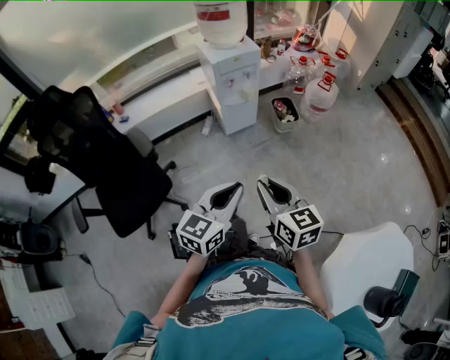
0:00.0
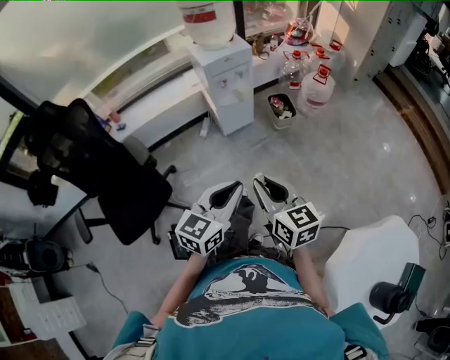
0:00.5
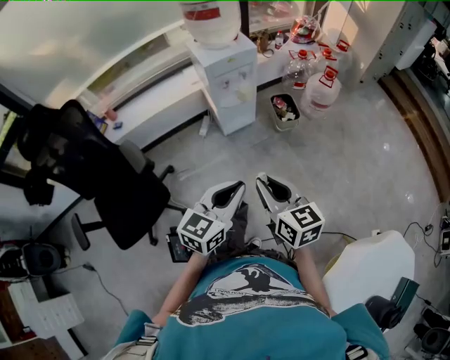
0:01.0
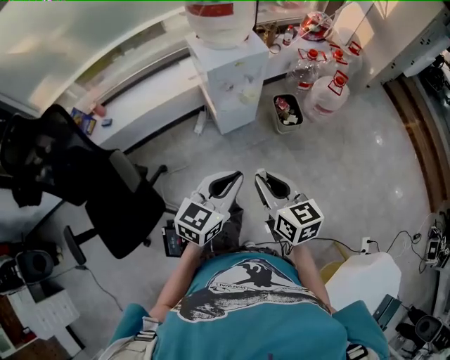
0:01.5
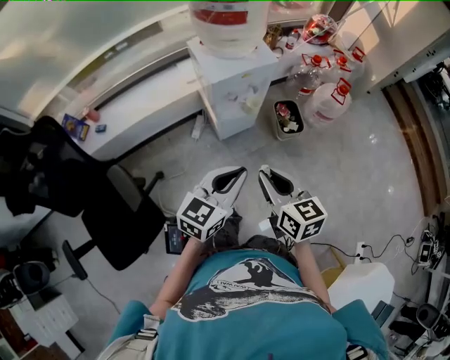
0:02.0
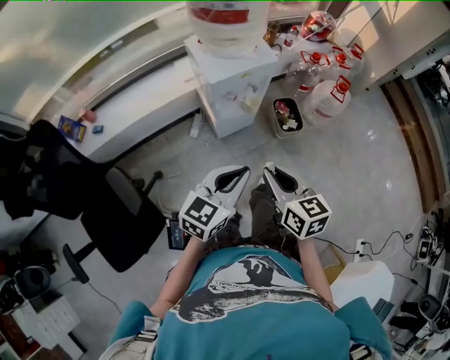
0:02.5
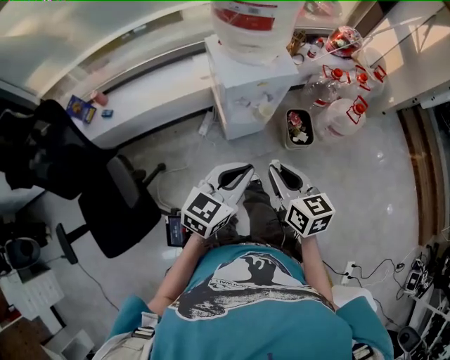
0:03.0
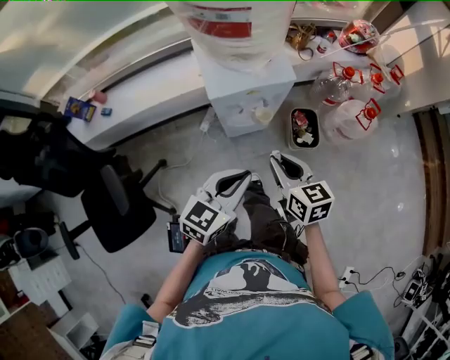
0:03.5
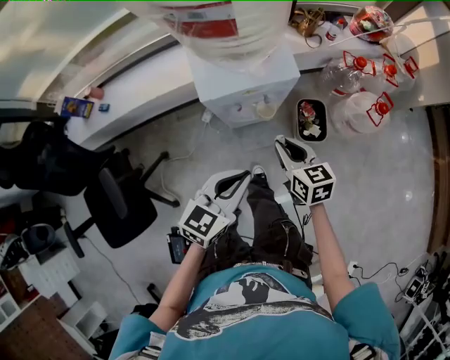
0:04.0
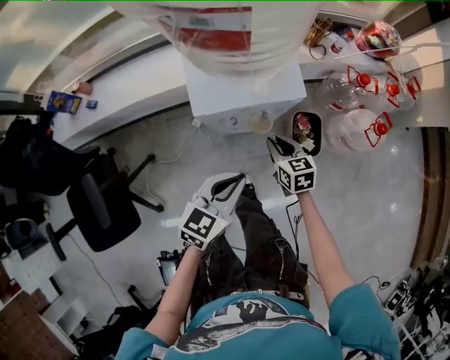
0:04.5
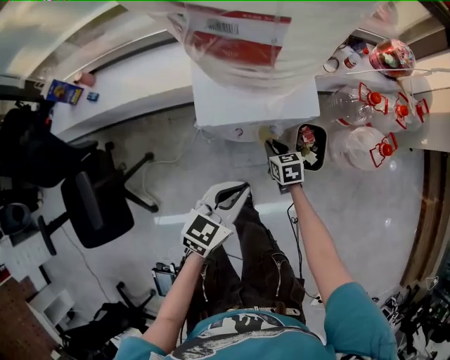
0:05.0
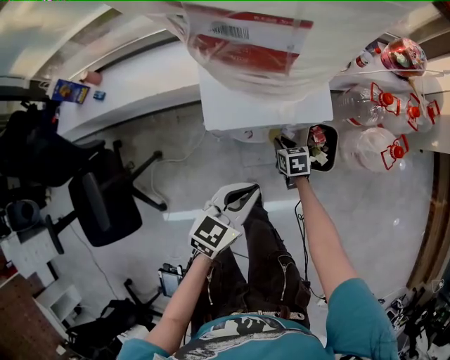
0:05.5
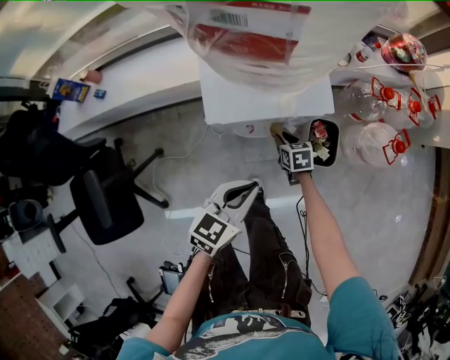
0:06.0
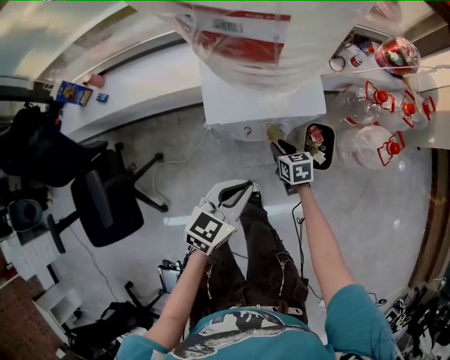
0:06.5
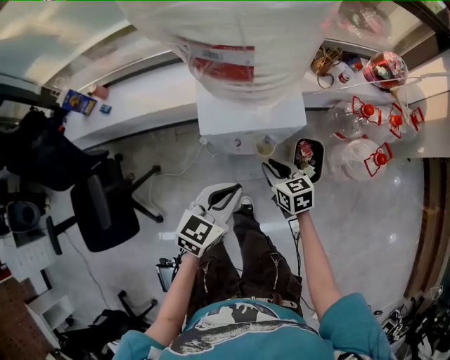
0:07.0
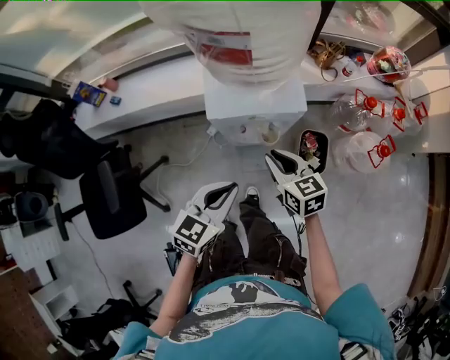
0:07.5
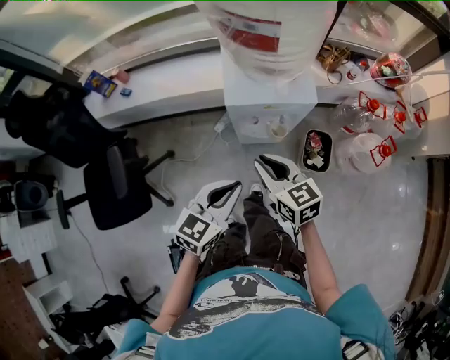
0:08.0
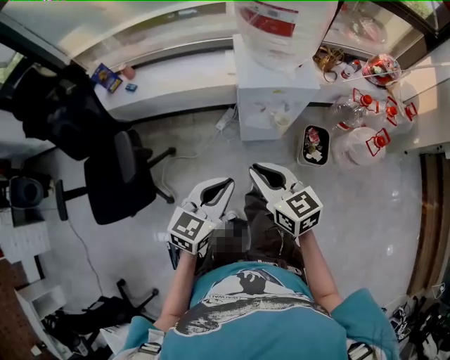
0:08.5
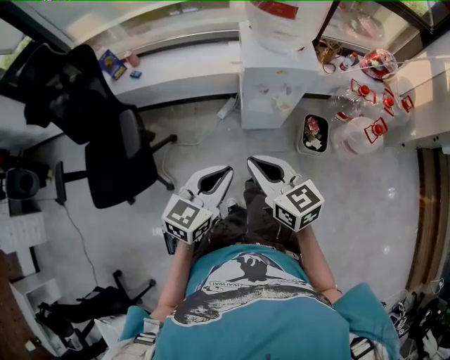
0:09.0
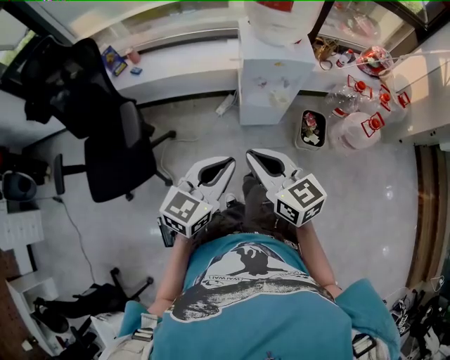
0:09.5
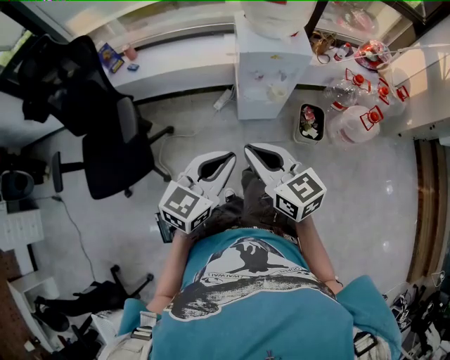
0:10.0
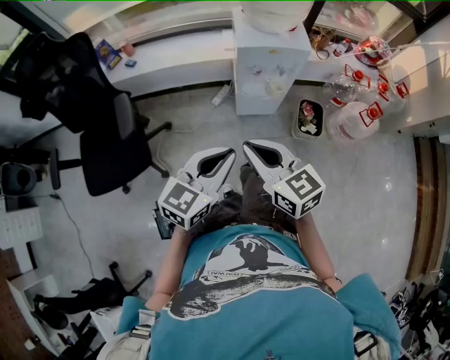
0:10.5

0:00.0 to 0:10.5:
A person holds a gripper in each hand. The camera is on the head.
0:00.0 to 0:02.0: Both grippers travel together forward, approximately 30 cm.
0:02.0 to 0:04.0: The left gripper is displaced forward by some 15 cm, while the right gripper is displaced forward and downward by approximately 30 cm.
0:04.0 to 0:06.5: The left gripper shifts approximately 10 cm downward and forward, while the right gripper shifts roughly 25 cm downward and forward.
0:06.5 to 0:08.5: The right gripper goes some 40 cm upward, backward and to the left, and changes its angle by approximately 30 degrees. The left gripper is displaced backward, upward and to the left by some 20 cm.
0:08.5 to 0:10.5: Both grippers move backward, approximately 10 cm.

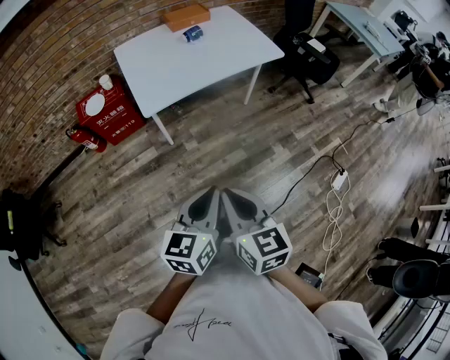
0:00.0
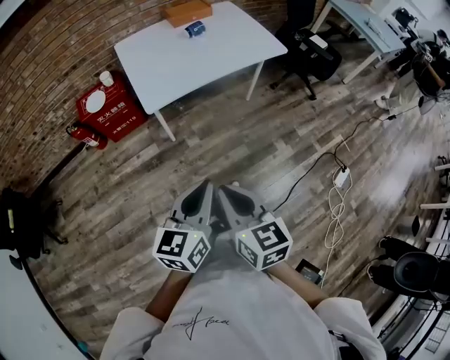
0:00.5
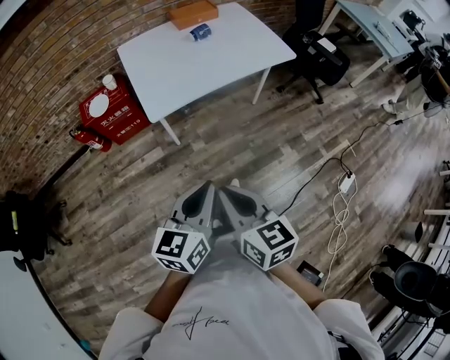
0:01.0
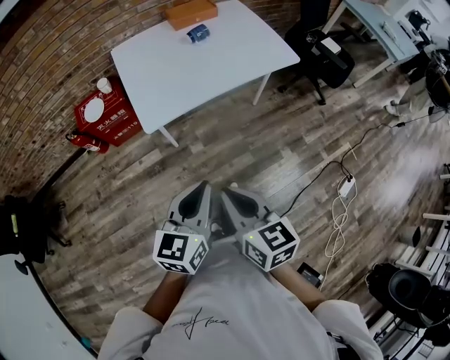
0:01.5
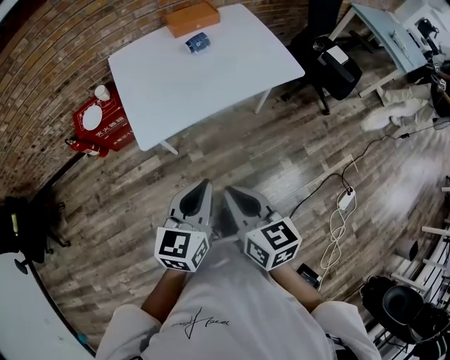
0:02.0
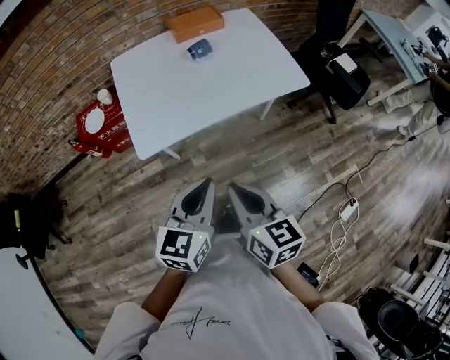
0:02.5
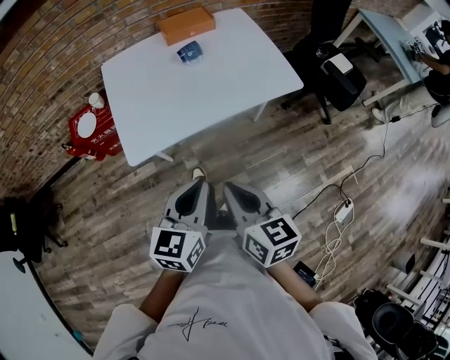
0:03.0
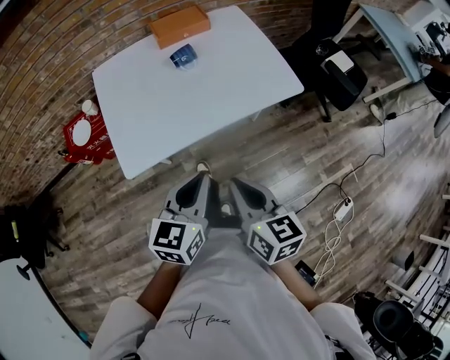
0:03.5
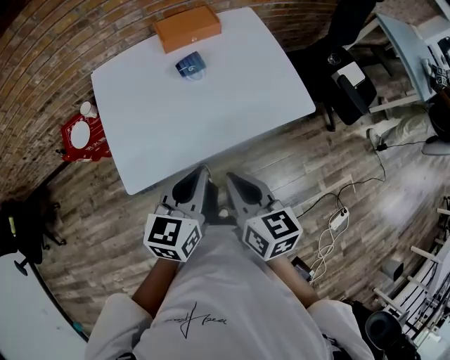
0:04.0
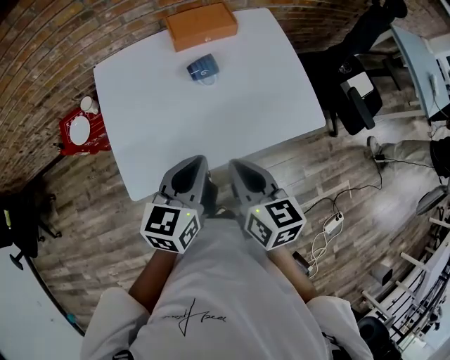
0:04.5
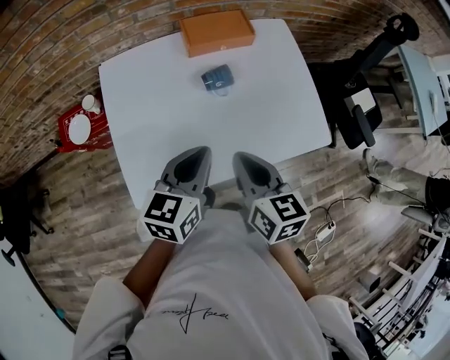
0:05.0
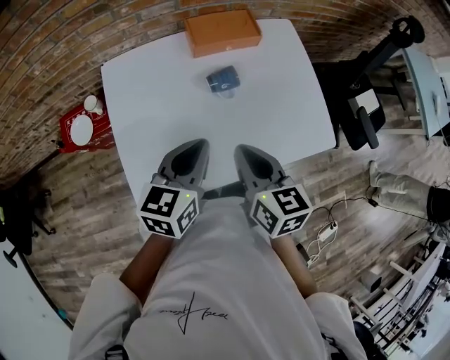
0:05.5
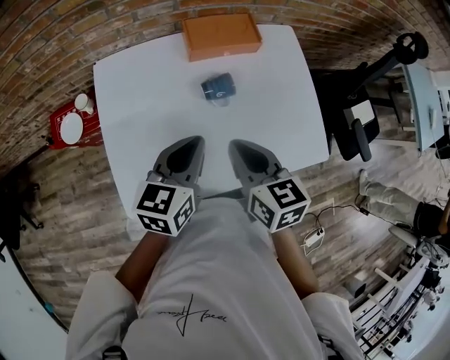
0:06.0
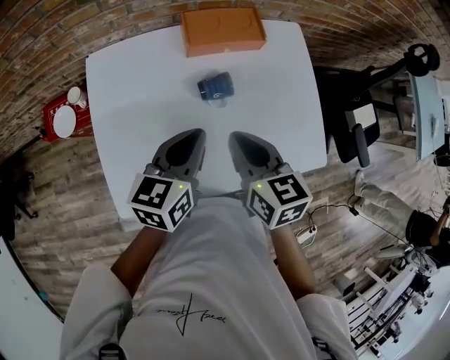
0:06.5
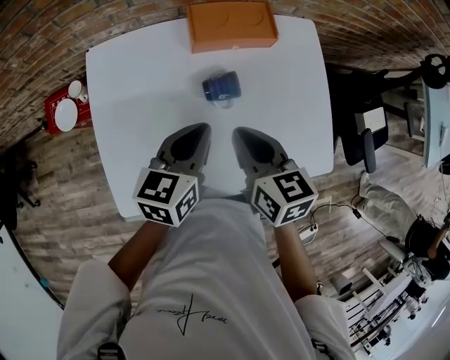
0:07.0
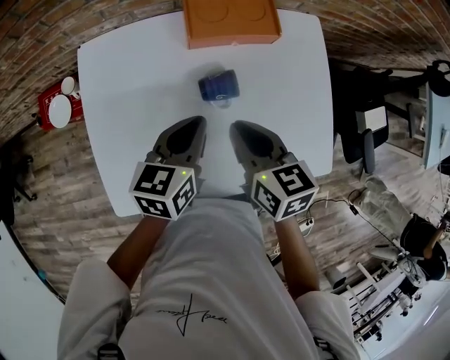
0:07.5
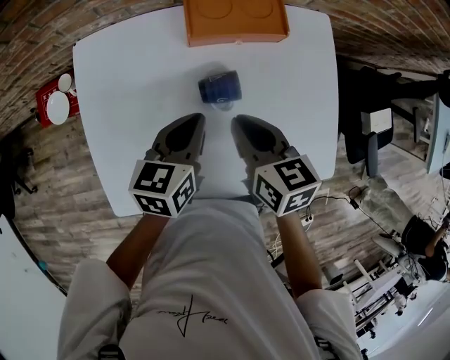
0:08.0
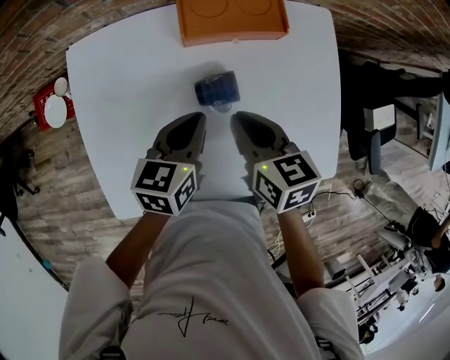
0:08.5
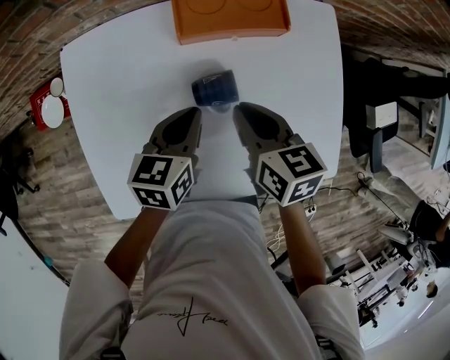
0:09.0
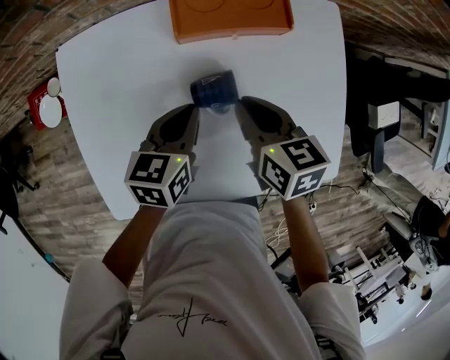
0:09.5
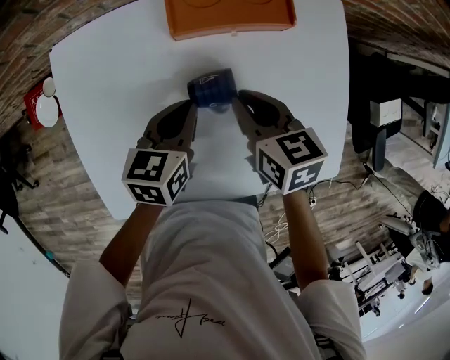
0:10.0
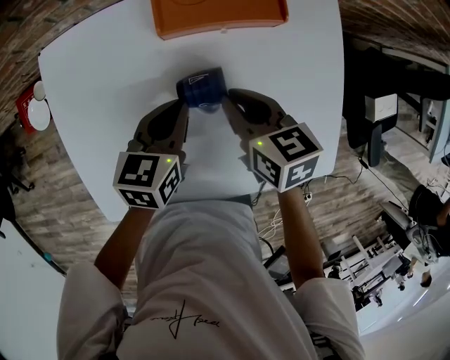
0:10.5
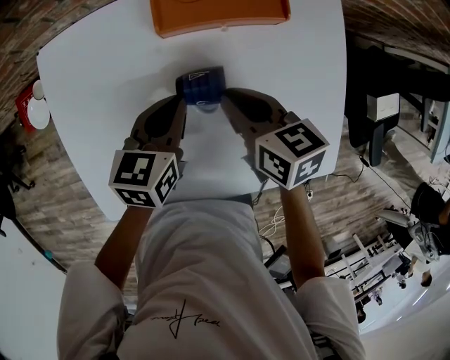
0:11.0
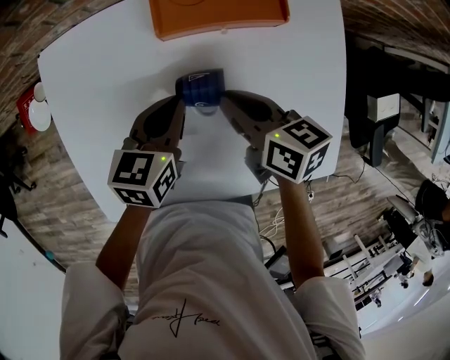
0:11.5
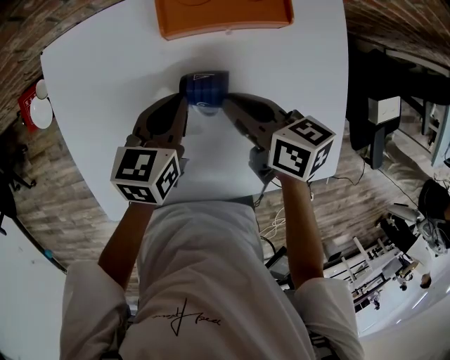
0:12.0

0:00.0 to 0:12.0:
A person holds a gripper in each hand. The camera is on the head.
0:00.0 to 0:02.0: The grippers both shift forward by about 20 cm.
0:02.0 to 0:04.0: Both grippers move forward, about 25 cm.
0:04.0 to 0:06.0: Both grippers move forward, roughly 20 cm.
0:06.0 to 0:08.0: The grippers both shift forward and downward by some 15 cm.
0:08.0 to 0:10.0: The left gripper moves downward, about 5 cm. Meanwhile the right gripper goes roughly 10 cm downward and forward.
0:10.0 to 0:12.0: The right gripper changes its angle by some 20 degrees.

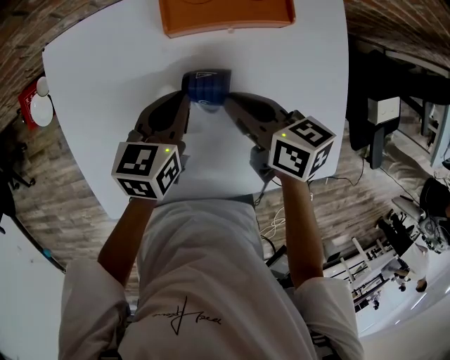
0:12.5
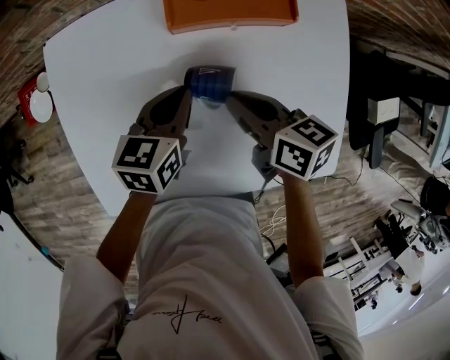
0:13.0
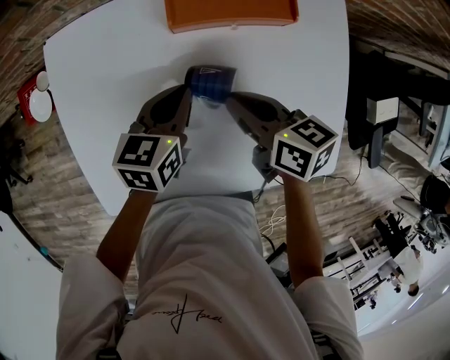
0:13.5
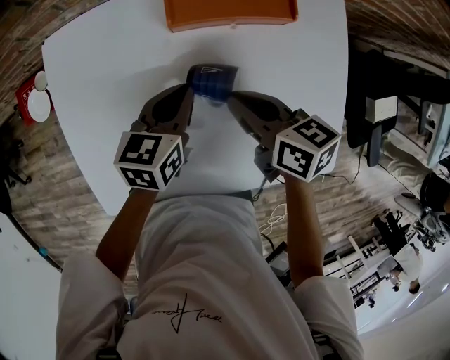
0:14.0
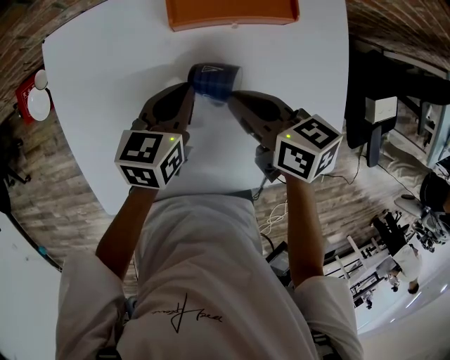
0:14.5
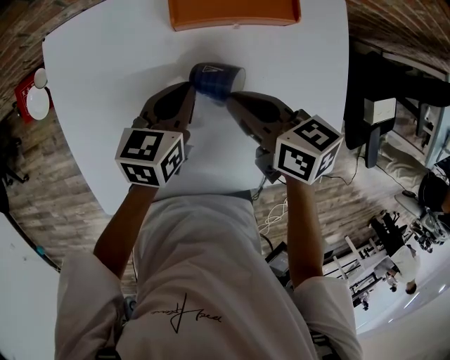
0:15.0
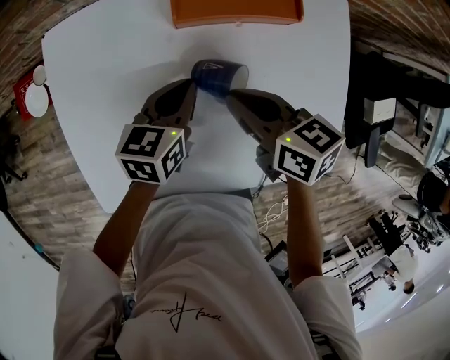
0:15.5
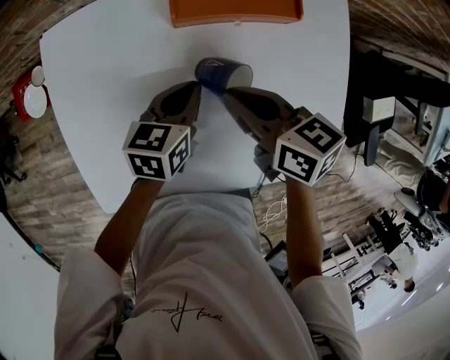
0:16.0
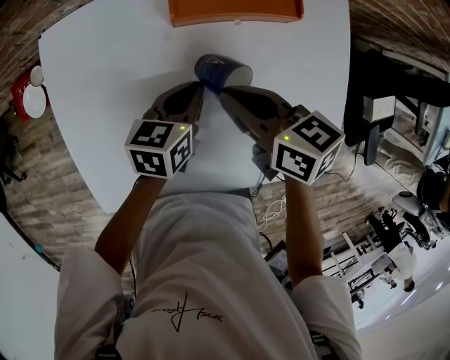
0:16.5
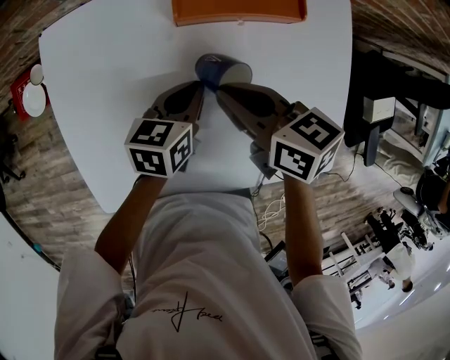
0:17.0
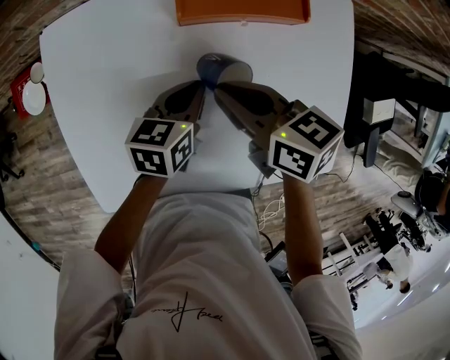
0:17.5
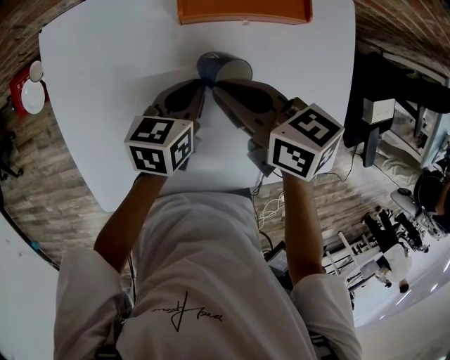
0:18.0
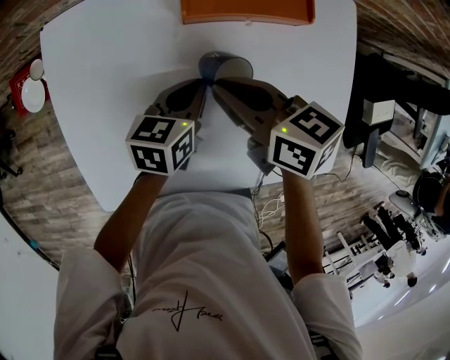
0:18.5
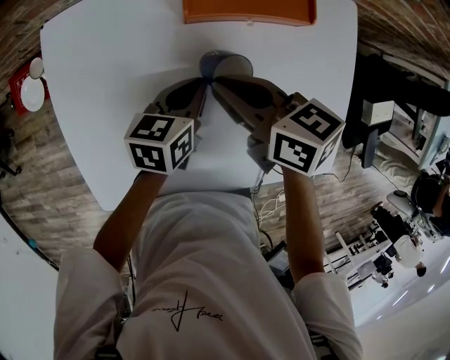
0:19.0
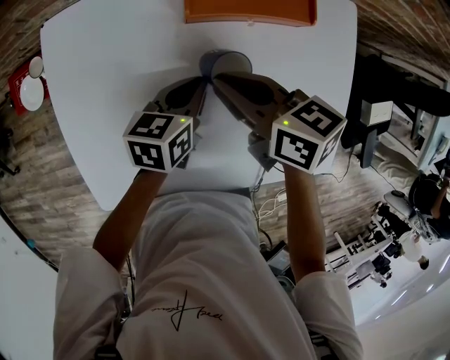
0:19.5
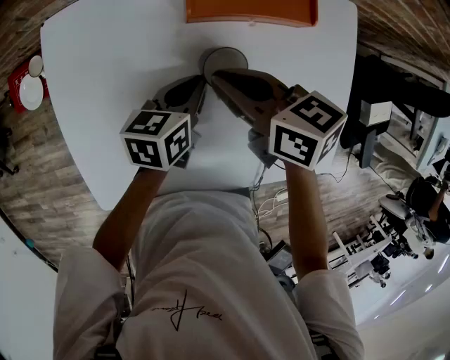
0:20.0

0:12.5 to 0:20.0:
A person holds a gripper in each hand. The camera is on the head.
0:12.5 to 0:18.0: There are only small adjustments of the grippers.
0:18.0 to 0:20.0: There are only small adjustments of the grippers.
